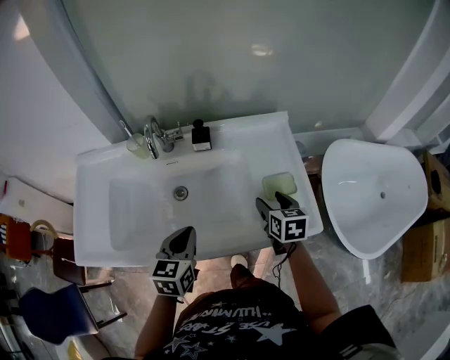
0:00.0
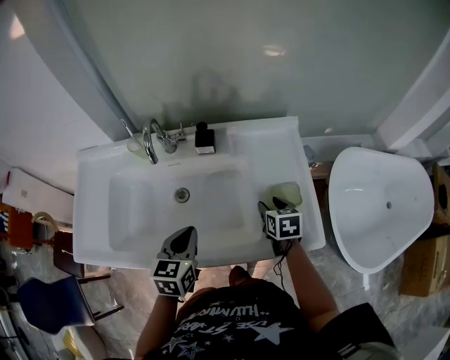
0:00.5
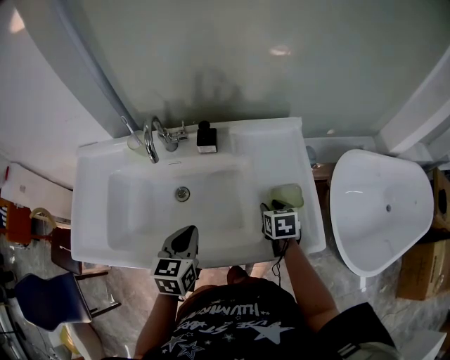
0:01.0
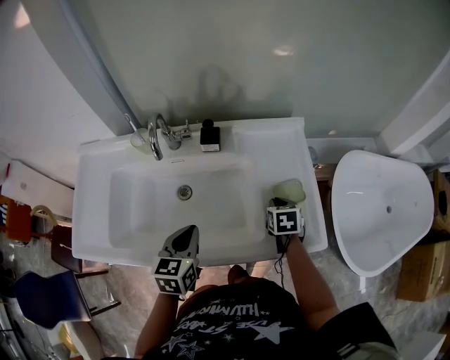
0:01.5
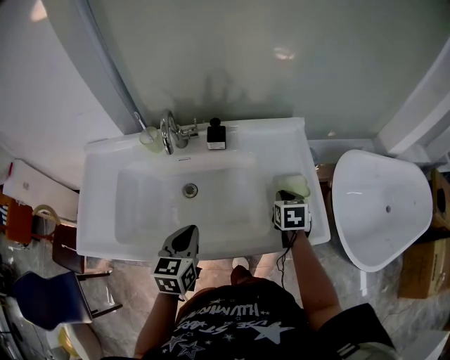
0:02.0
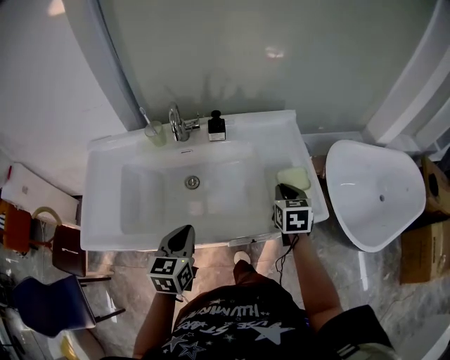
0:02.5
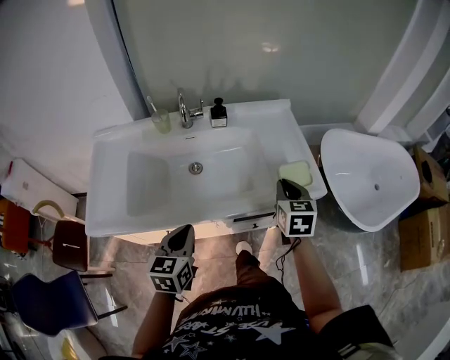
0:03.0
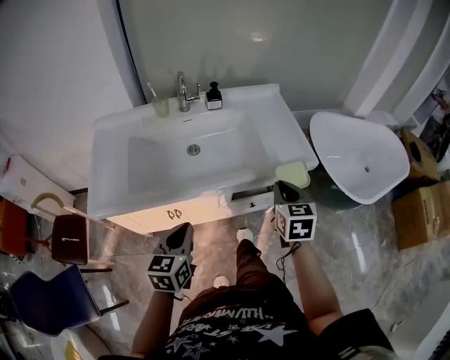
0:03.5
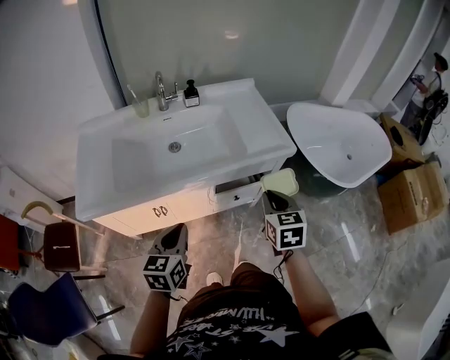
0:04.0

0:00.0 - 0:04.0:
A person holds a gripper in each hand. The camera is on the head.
0:00.0 - 0:02.0: The right gripper closes up.
0:02.0 - 0:04.0: Both grippers move backward, approximately 35 cm.

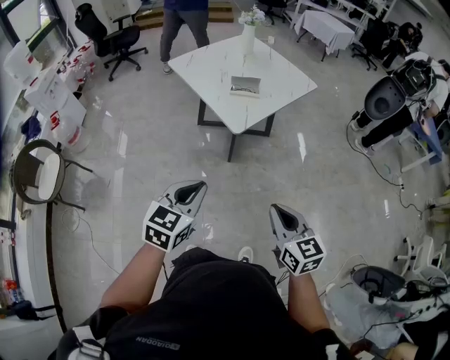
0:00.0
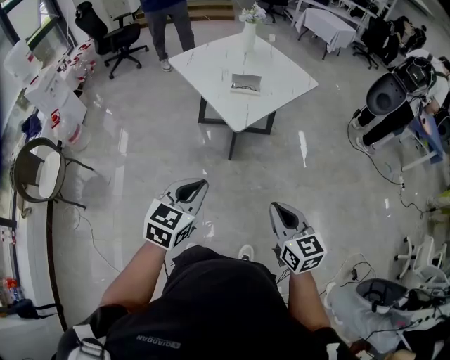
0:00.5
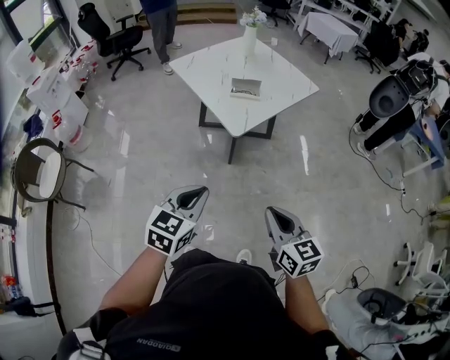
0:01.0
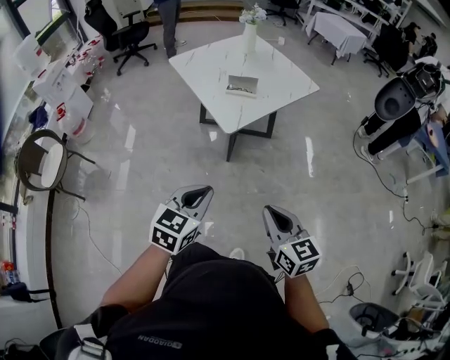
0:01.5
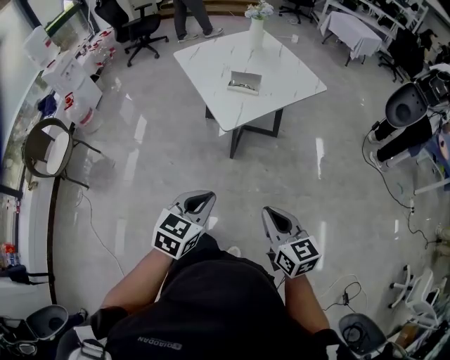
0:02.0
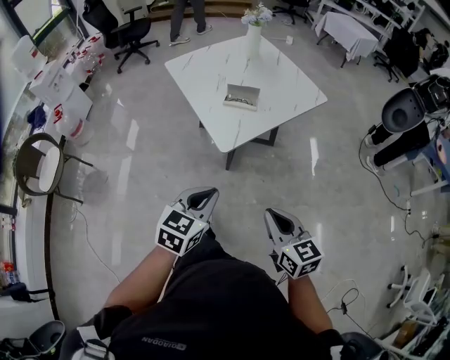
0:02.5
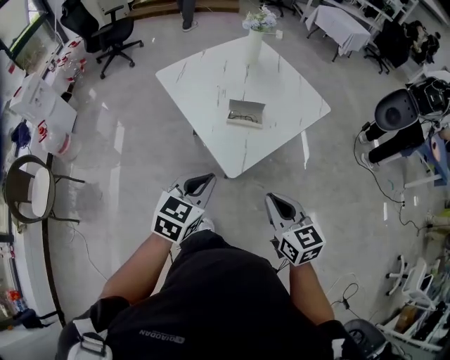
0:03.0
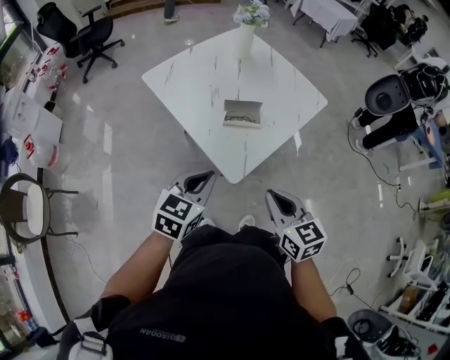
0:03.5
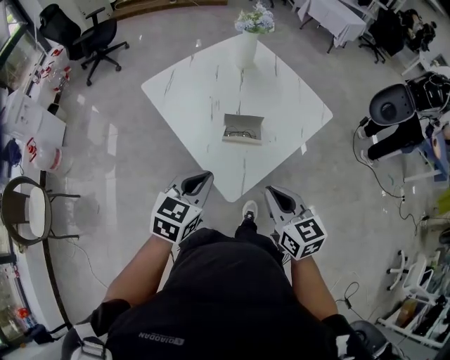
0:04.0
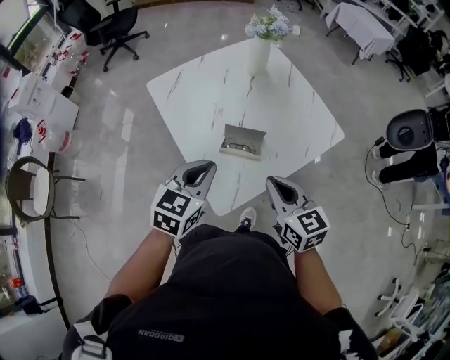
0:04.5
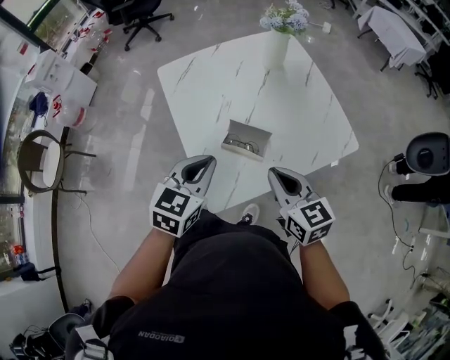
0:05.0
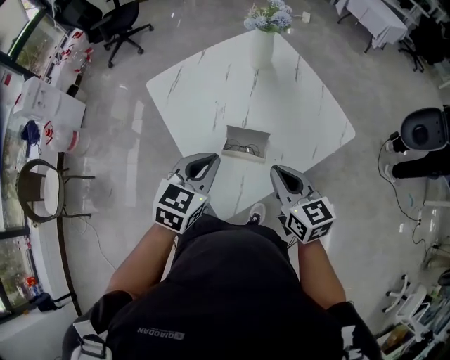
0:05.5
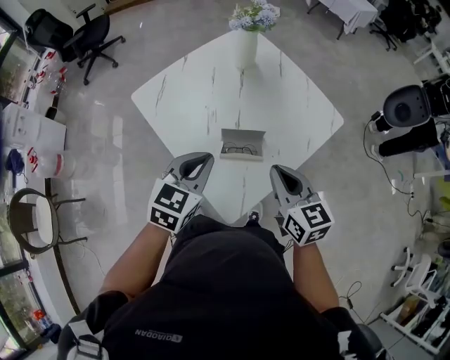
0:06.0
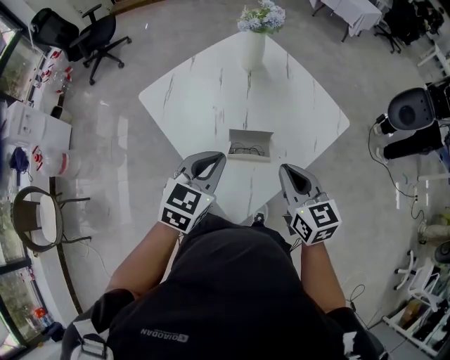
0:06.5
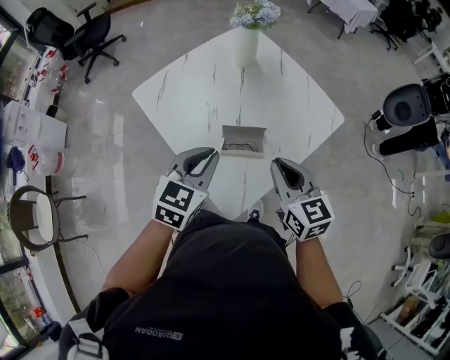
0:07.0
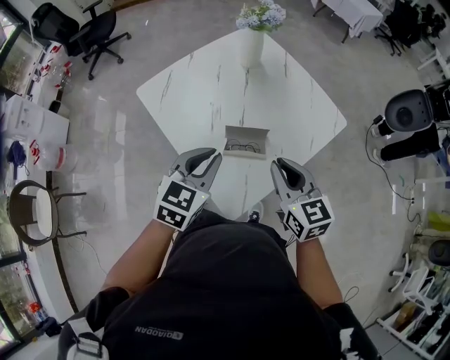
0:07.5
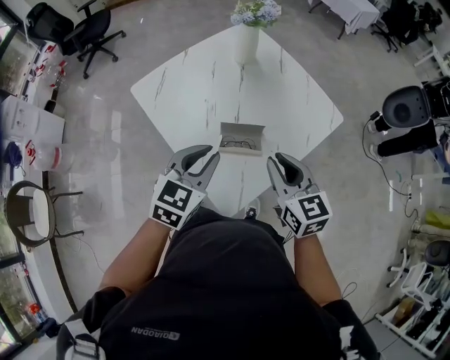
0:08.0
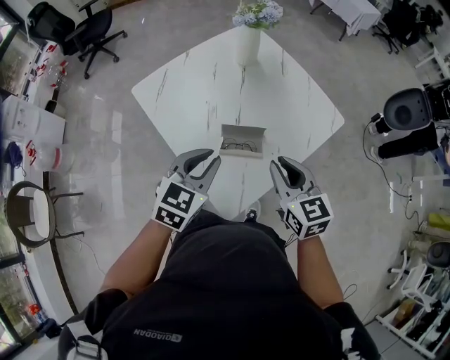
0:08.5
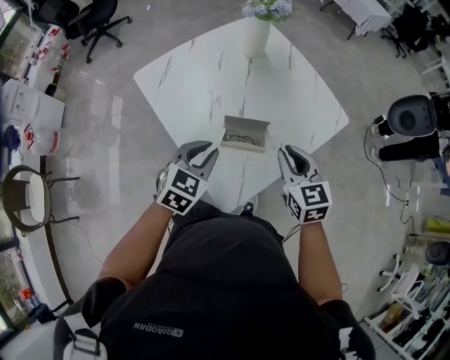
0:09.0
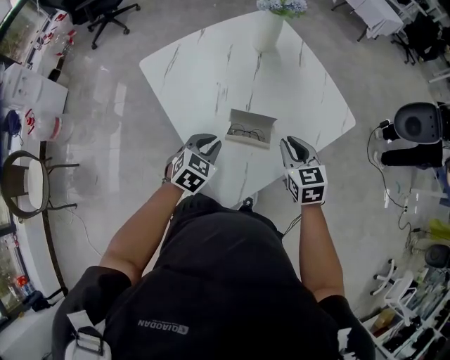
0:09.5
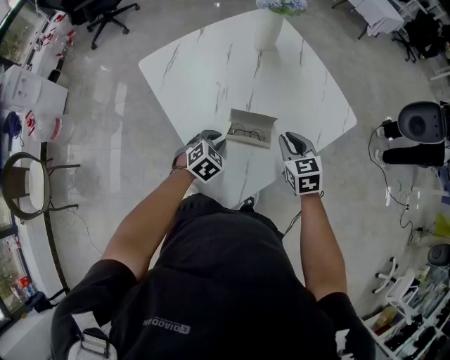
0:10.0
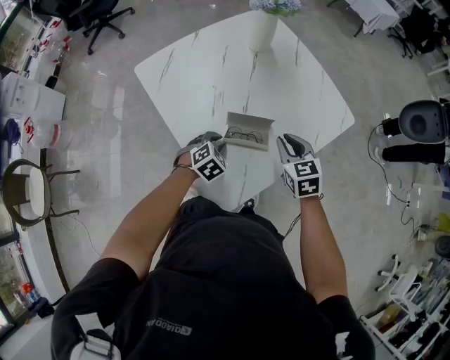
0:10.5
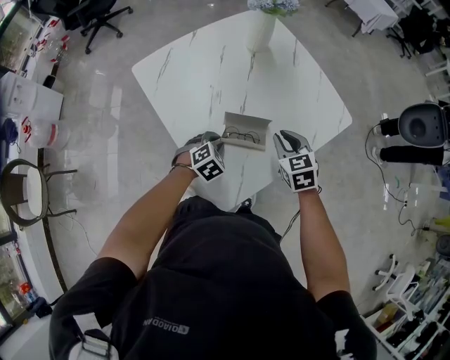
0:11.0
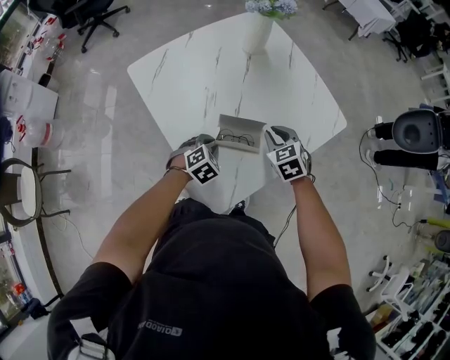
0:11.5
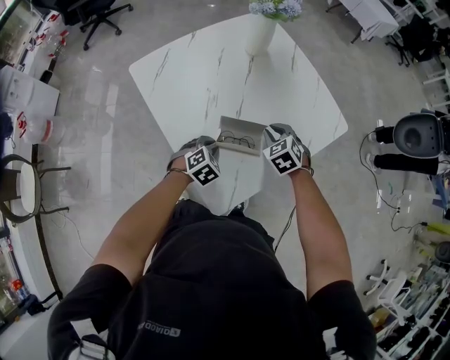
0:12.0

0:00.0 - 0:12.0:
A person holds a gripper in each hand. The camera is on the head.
0:00.0 - 0:02.0: The two grippers go approximately 15 cm to the right.
0:02.0 - 0:04.0: The pair of grippers is taken forward, roughly 40 cm.
0:04.0 - 0:06.0: Both grippers travel together forward, approximately 15 cm.
0:06.0 - 0:08.0: There are only small adjustments of the grippers.
0:08.0 - 0:10.0: The left gripper shifts approximately 20 cm downward, and swivels about 30 degrees, while the right gripper travels downward and forward by some 15 cm, and turns by roughly 20 degrees.
0:10.0 - 0:12.0: The right gripper travels forward and downward by some 10 cm, and rotates some 30 degrees.

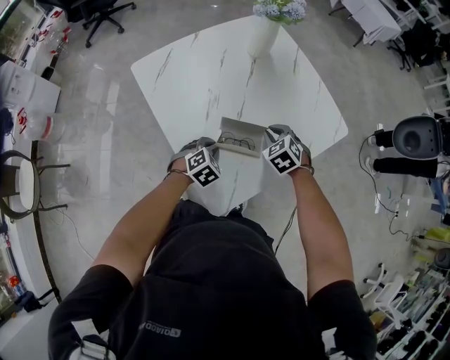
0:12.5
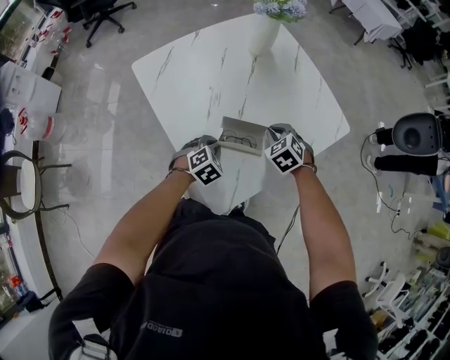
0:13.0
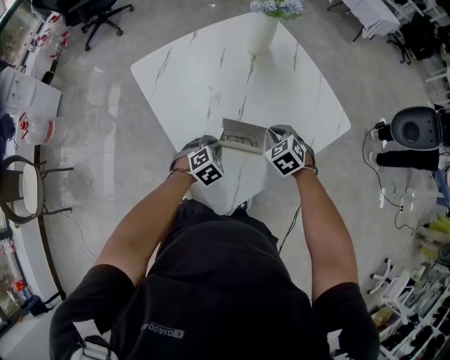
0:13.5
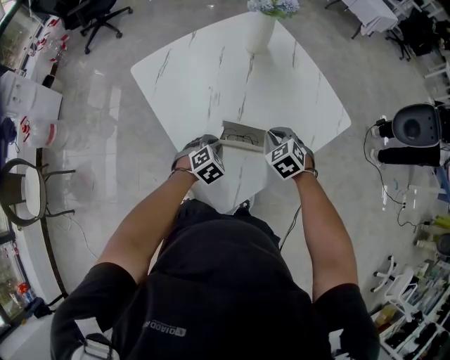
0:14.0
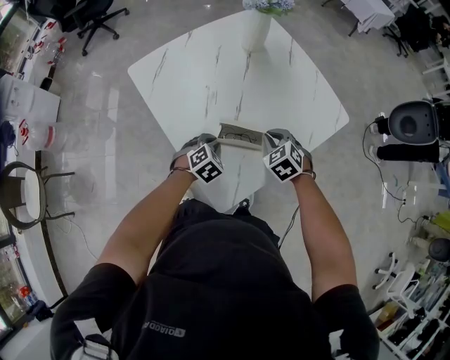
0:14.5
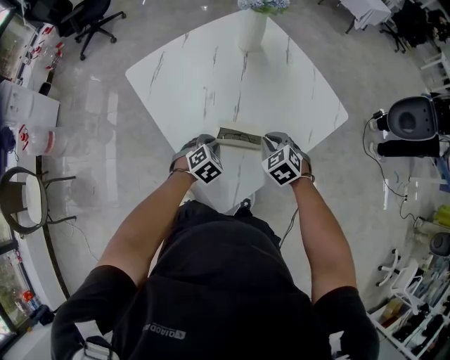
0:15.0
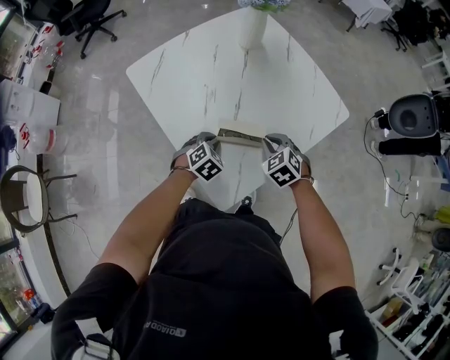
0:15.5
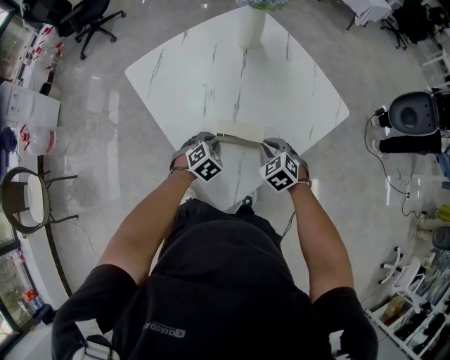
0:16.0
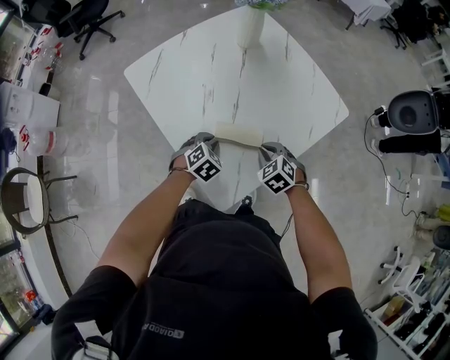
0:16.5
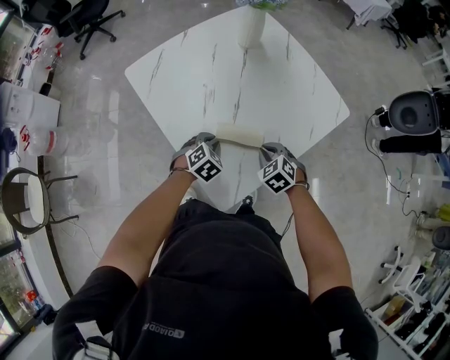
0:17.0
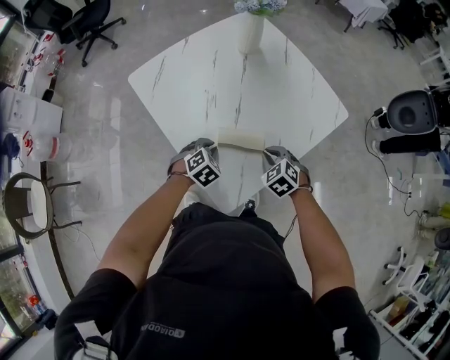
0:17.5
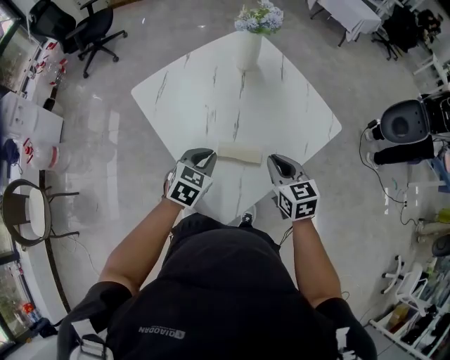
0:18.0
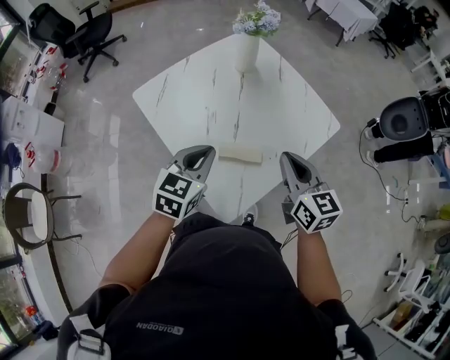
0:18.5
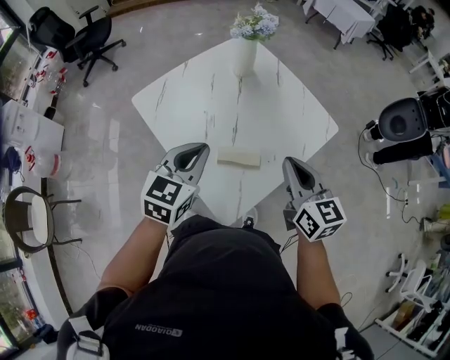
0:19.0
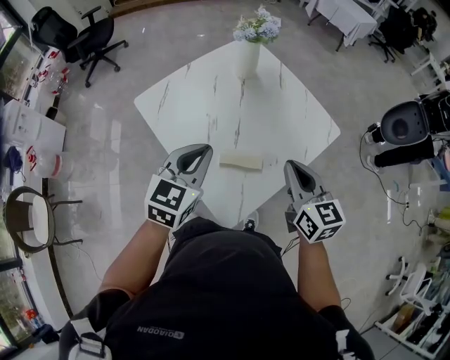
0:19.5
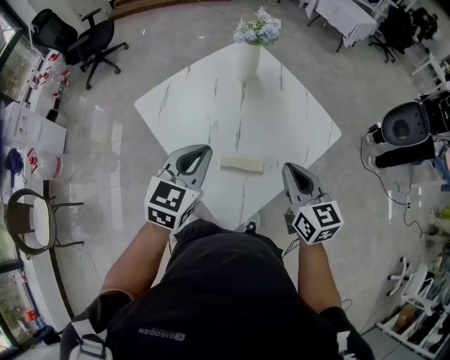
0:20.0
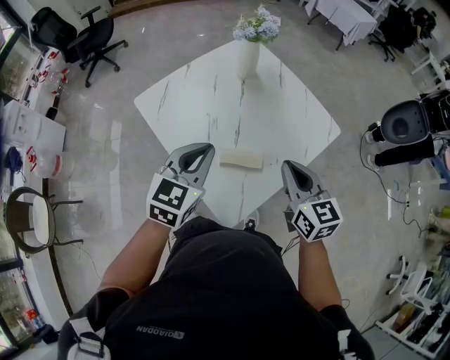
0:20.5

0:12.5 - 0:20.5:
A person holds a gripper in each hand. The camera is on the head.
0:12.5 - 0:14.5: The grippers stay close to where they were, moving slightly.
0:14.5 - 0:16.5: The right gripper is displaced backward by about 5 cm.
0:16.5 - 0:18.5: The grippers both shift upward by some 25 cm. The left gripper tilts its fingers roughly 30 degrees upward. Meanwhile the right gripper tilts its fingers approximately 40 degrees upward.
0:18.5 - 0:20.5: The left gripper is displaced upward by approximately 5 cm.

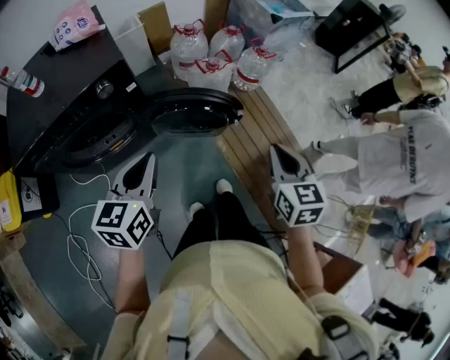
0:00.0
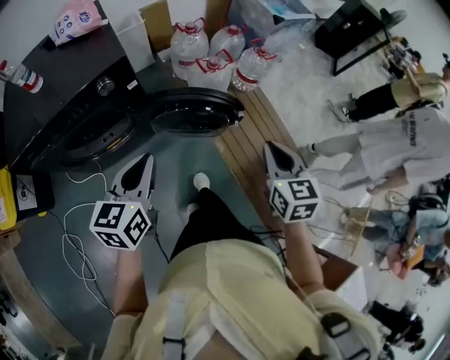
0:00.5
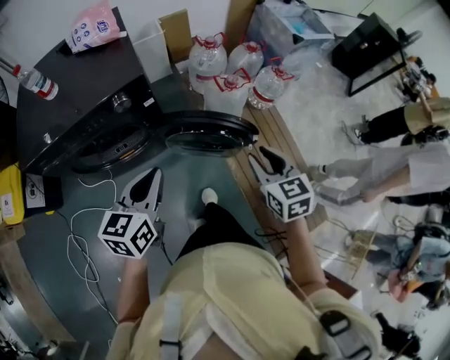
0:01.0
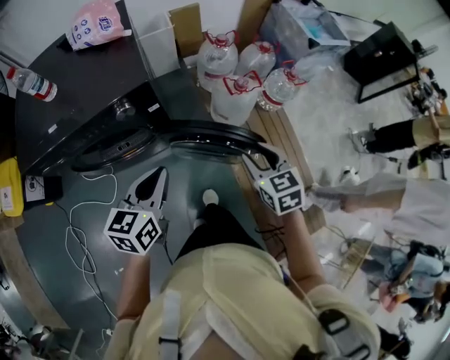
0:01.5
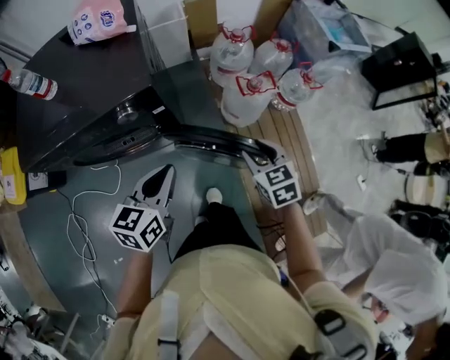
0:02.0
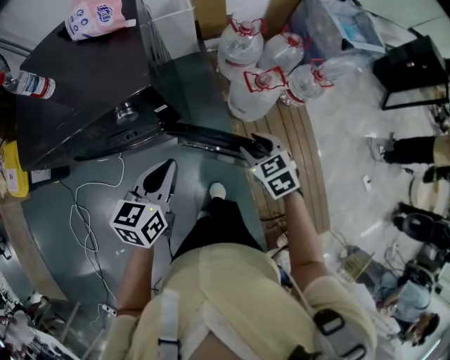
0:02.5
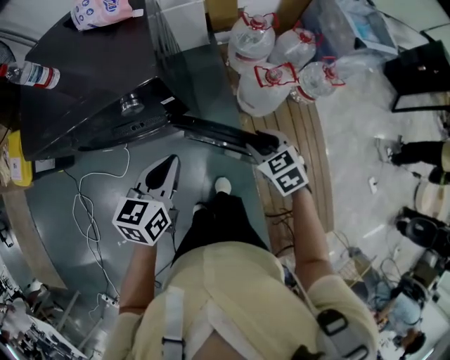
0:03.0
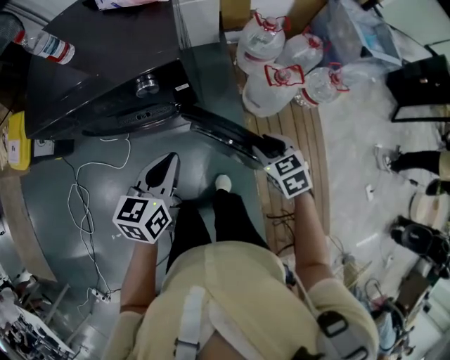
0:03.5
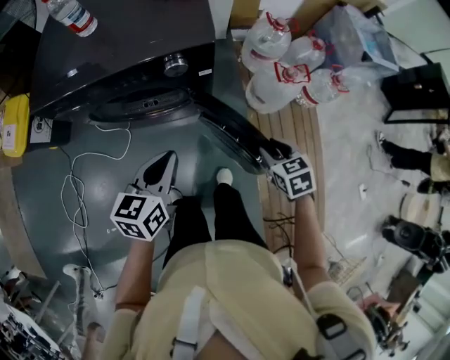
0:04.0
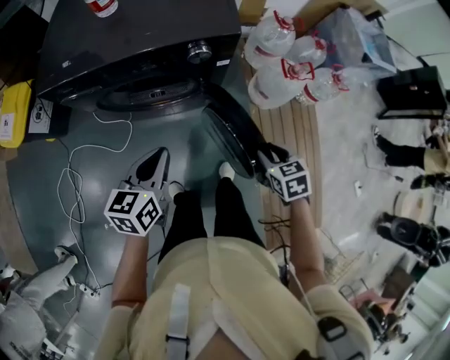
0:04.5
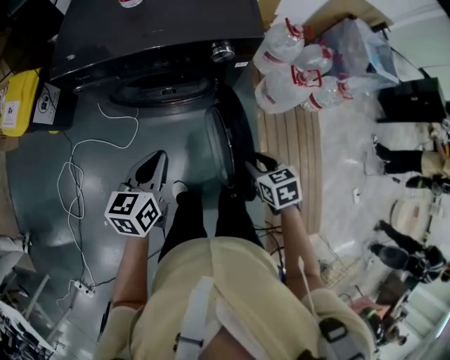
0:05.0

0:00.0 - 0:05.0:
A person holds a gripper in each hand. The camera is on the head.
0:00.0 - 0:02.5: The right gripper moves forward, downward and to the left, about 35 cm, changes its angle by some 40 degrees, and opens up. The left gripper is displaced forward and downward by some 20 cm.
0:02.5 - 0:05.0: The grippers both shift to the left and backward by about 25 cm.
